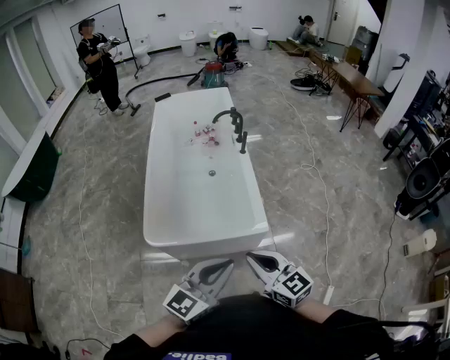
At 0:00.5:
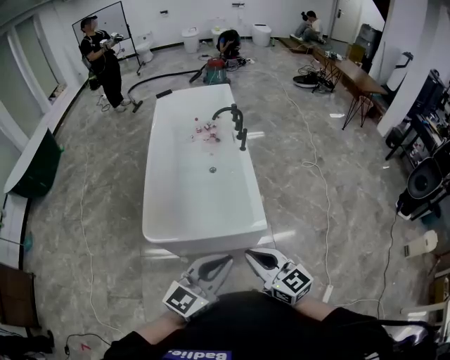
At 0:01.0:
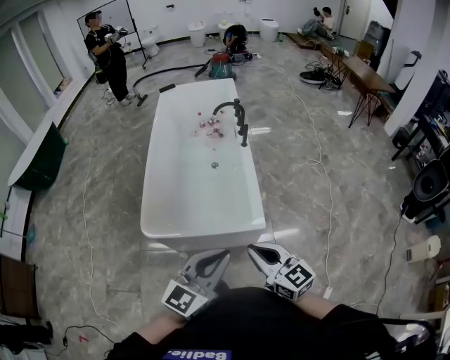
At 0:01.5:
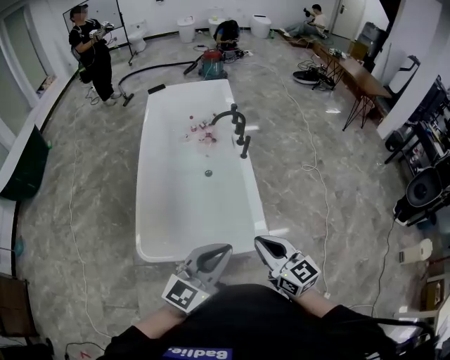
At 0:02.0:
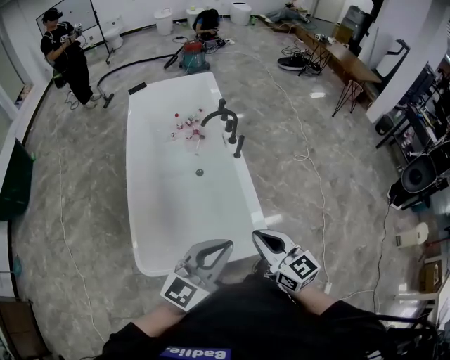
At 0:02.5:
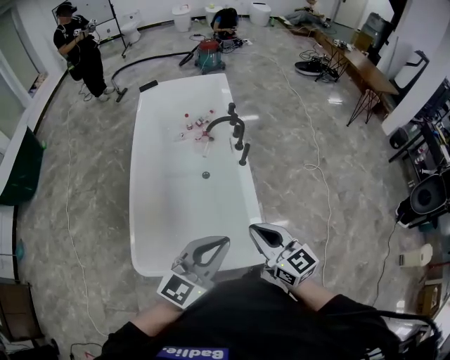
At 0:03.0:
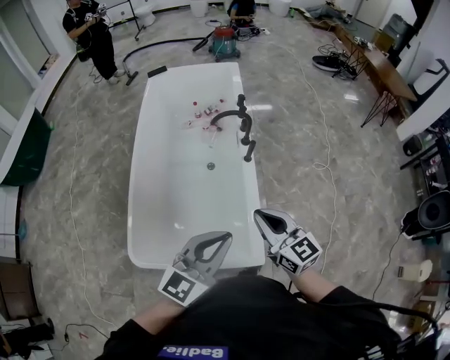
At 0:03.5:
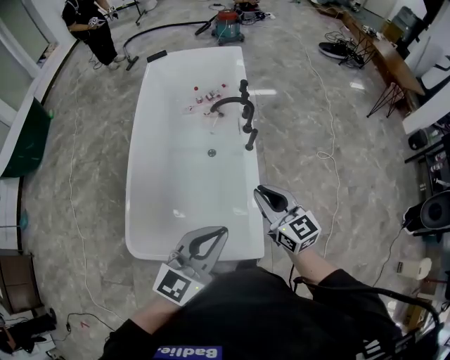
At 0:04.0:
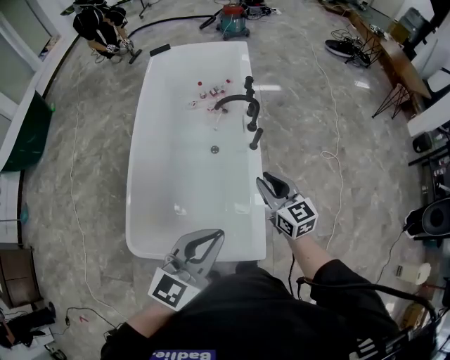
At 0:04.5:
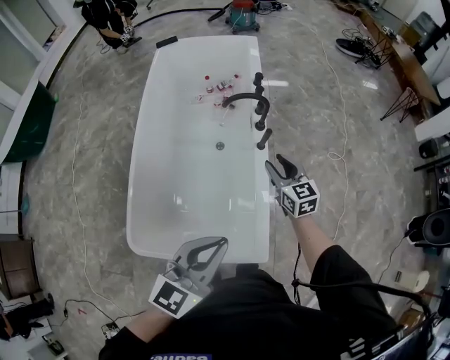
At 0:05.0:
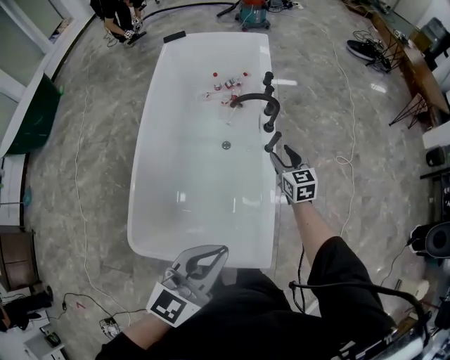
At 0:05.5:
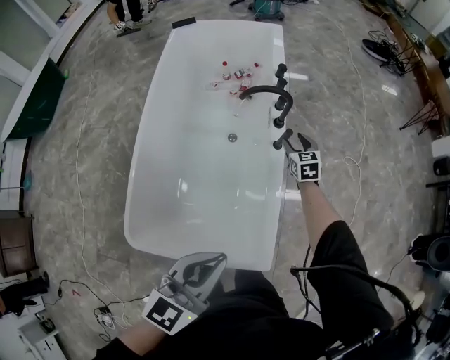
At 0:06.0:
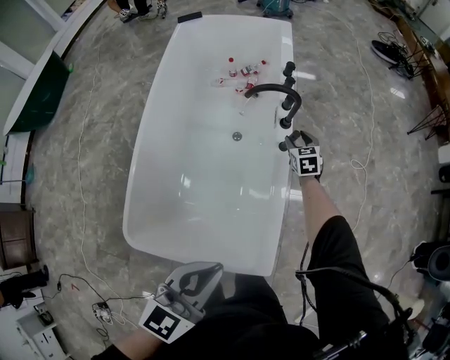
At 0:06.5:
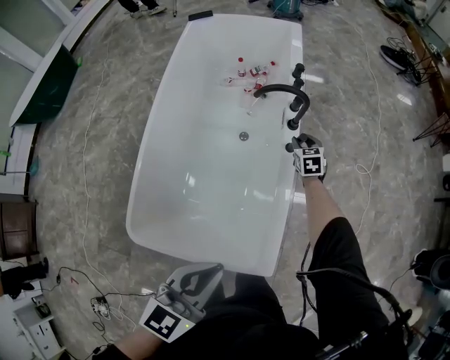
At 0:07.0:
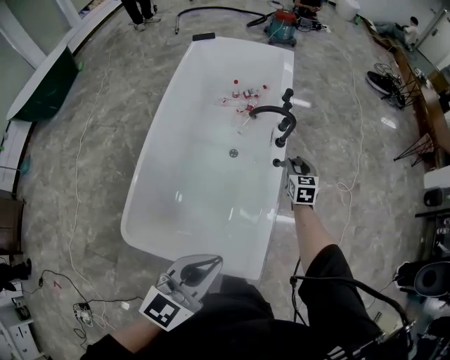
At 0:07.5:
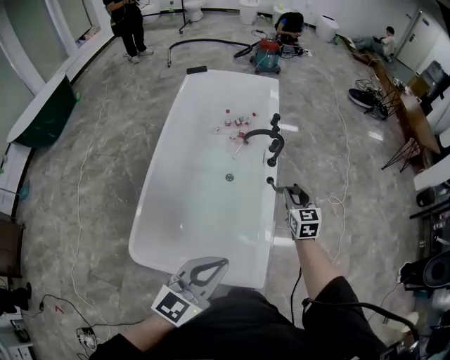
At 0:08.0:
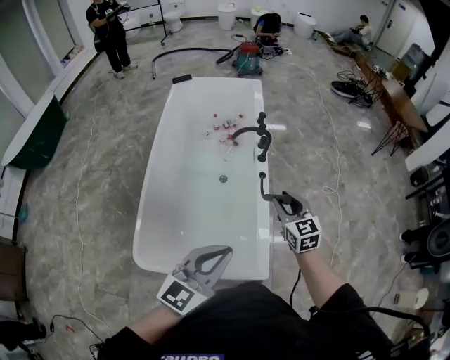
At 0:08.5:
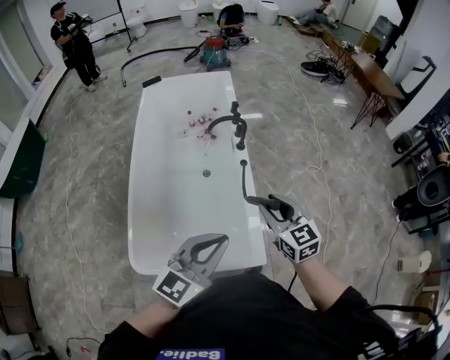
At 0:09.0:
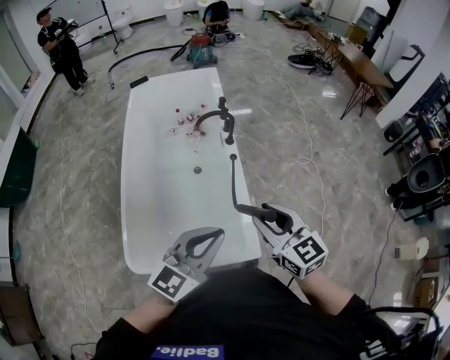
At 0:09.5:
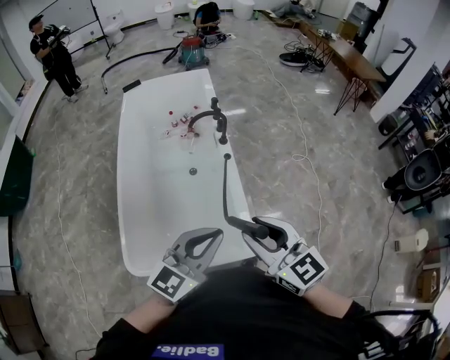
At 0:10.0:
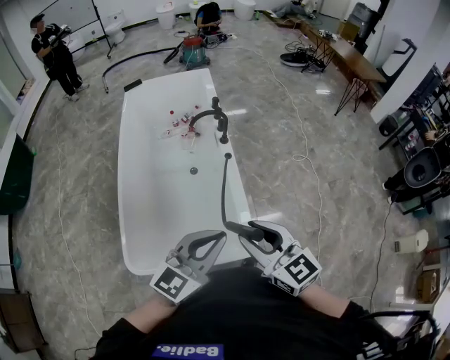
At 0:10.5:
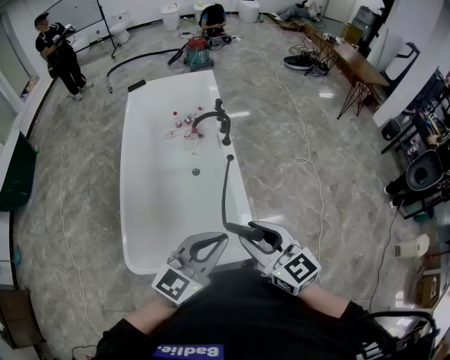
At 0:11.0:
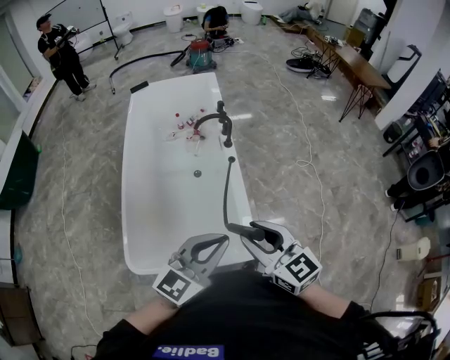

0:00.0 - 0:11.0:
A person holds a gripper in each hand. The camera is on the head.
0:00.0 - 0:02.0: The two grippers go approximately 30 cm forward.
0:02.0 - 0:03.5: The left gripper heads forward and to the right, covering roughly 15 cm. Meanwhile the right gripper is displaced forward by some 20 cm.
0:03.5 - 0:05.5: The left gripper shifts about 10 cm downward. The right gripper shifts roughly 40 cm forward and downward, rotates some 30 degrees, and opens its fingers.
0:05.5 - 0:07.5: The left gripper moves backward and upward, roughly 10 cm. Meanwhile the right gripper moves upward and backward, approximately 25 cm.
0:07.5 - 0:09.0: The left gripper changes place by some 5 cm; the right gripper travels backward and upward by roughly 30 cm.
0:09.0 - 0:11.0: The right gripper travels backward by approximately 5 cm.

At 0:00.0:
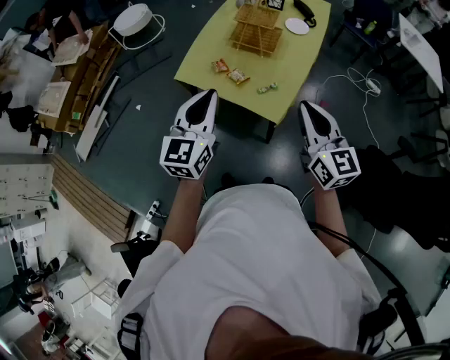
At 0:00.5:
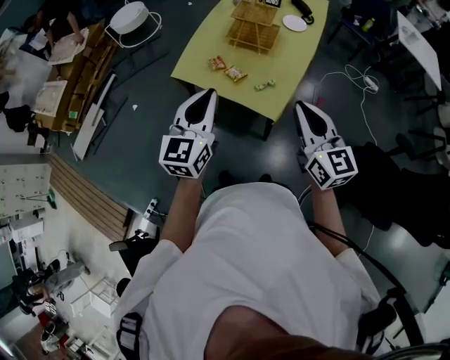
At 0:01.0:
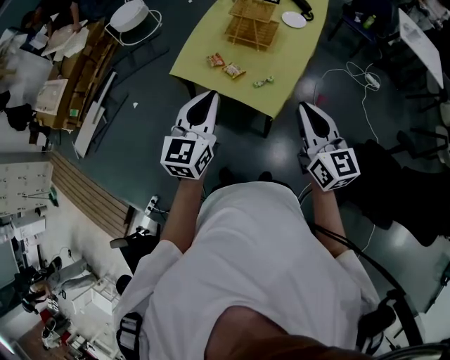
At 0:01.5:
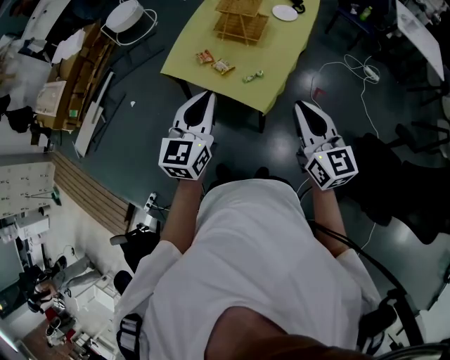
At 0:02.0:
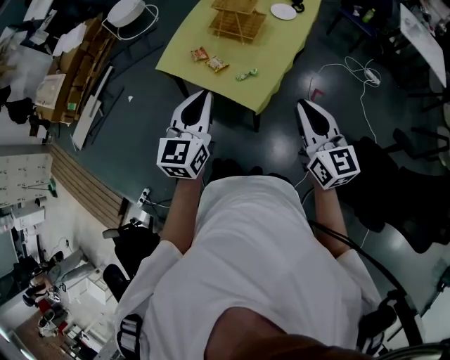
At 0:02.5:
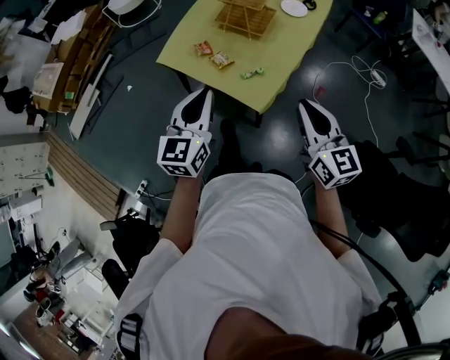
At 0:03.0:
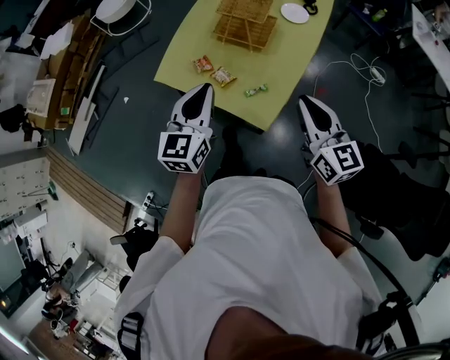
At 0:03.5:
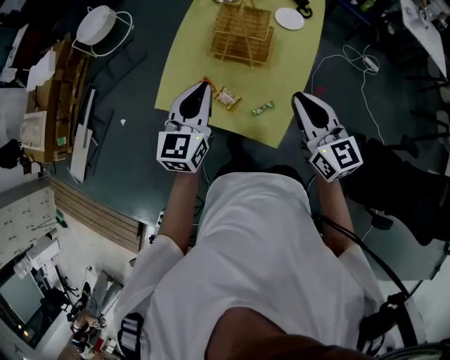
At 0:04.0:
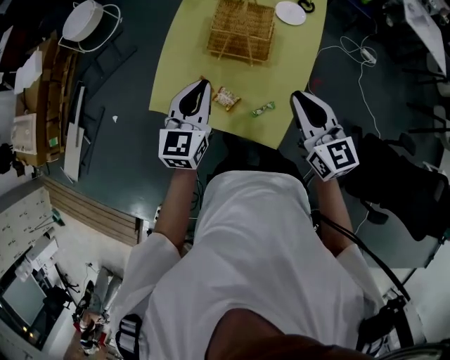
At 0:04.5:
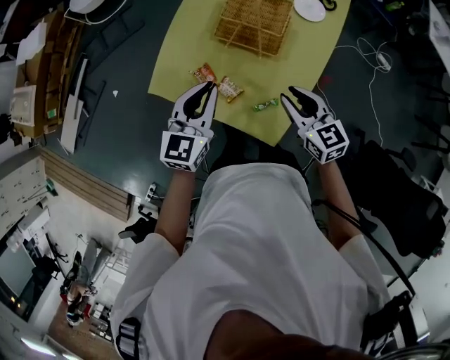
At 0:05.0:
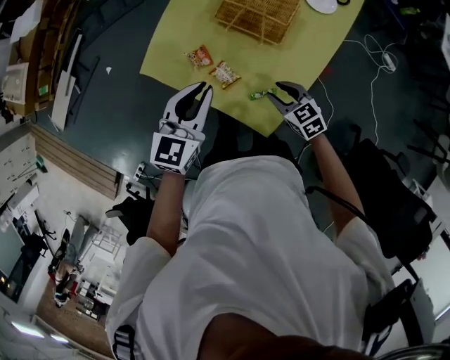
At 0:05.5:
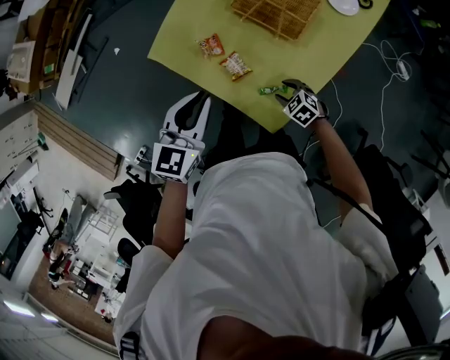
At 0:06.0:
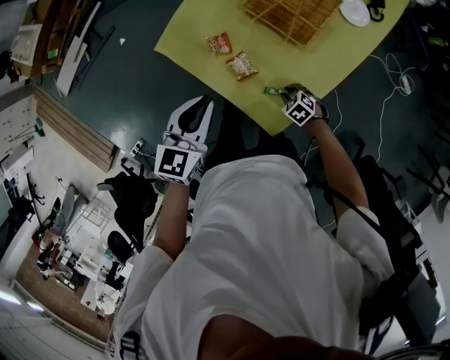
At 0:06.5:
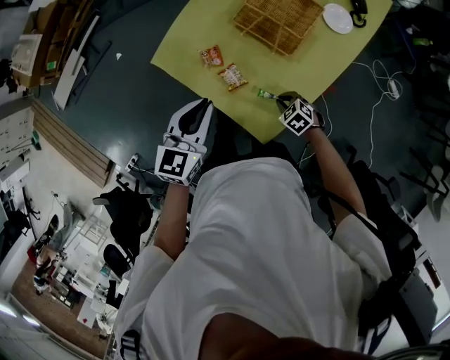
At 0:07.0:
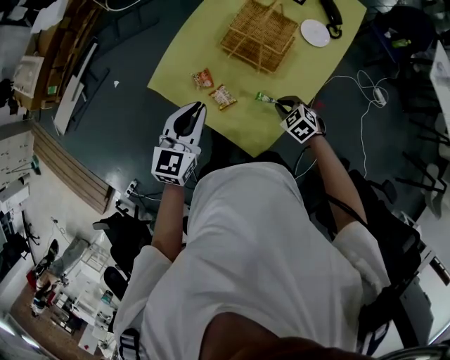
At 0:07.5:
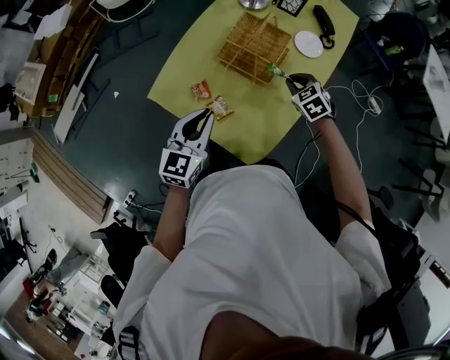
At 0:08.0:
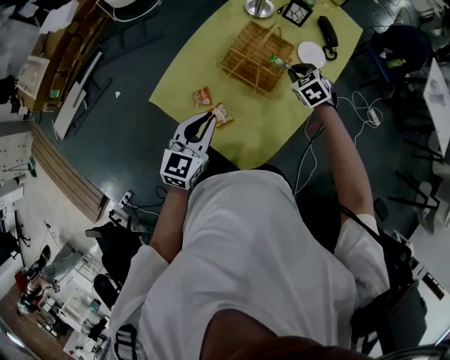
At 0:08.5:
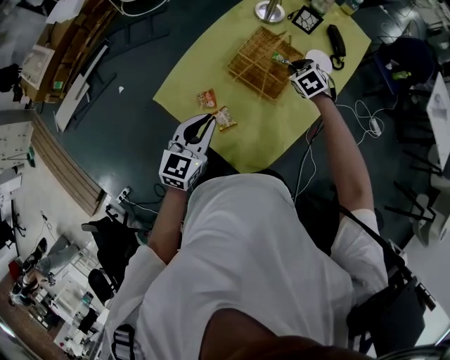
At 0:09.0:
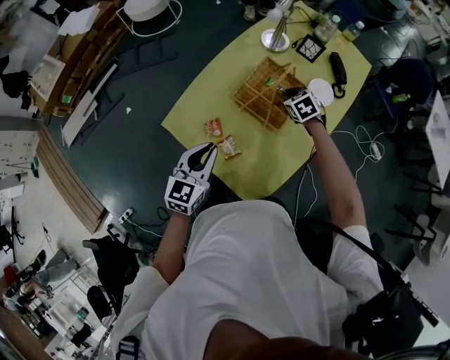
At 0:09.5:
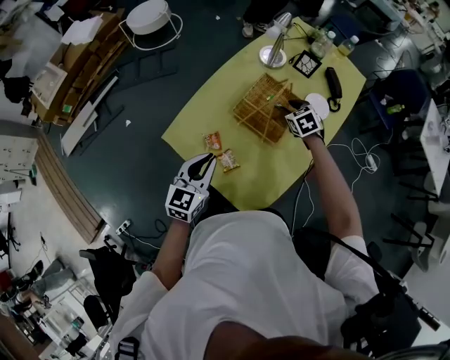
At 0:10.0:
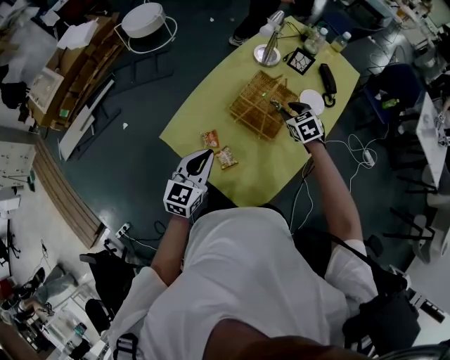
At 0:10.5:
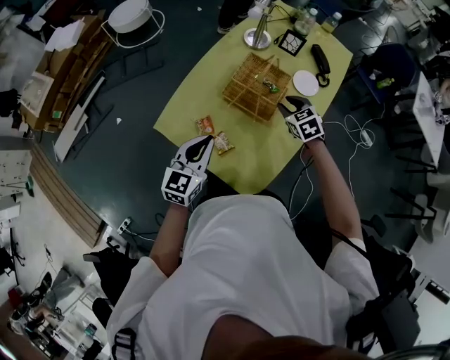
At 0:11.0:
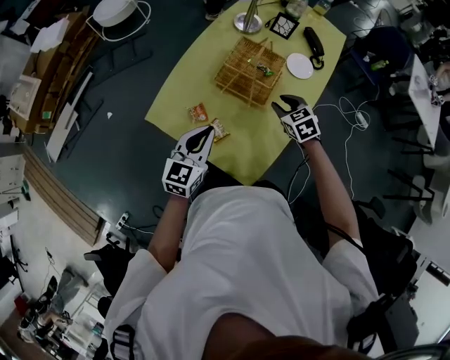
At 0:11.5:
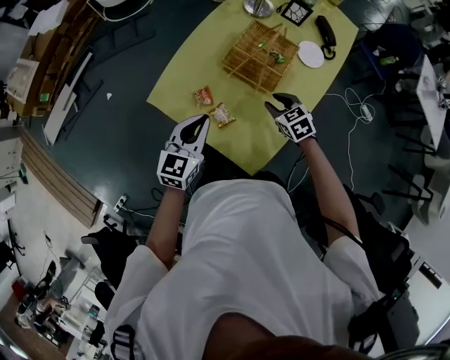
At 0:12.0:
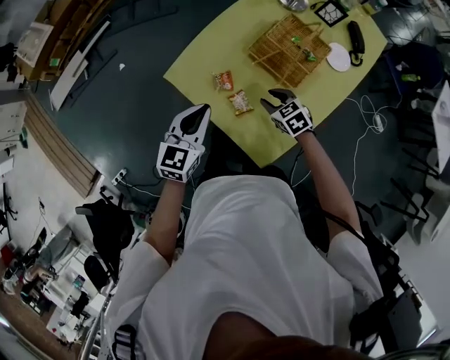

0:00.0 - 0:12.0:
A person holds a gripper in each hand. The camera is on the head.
0:00.0 - 0:02.0: The two grippers go about 10 cm to the right.
0:02.0 - 0:04.0: The grippers both shift forward by some 35 cm.
0:04.0 - 0:06.0: The right gripper heads downward, covering approximately 40 cm, angles its fingers downward, by some 60 degrees, and opens, then closes once more. Meanwhile the left gripper ends up approximately 15 cm from where it was.
0:06.0 - 0:08.0: The right gripper shifts roughly 25 cm upward, and turns by approximately 30 degrees, while the left gripper moves some 10 cm.
0:08.0 - 0:10.0: The right gripper opens up.
0:10.0 - 0:12.0: The right gripper shifts approximately 25 cm backward, to the left and downward; the left gripper travels to the left by roughly 5 cm.

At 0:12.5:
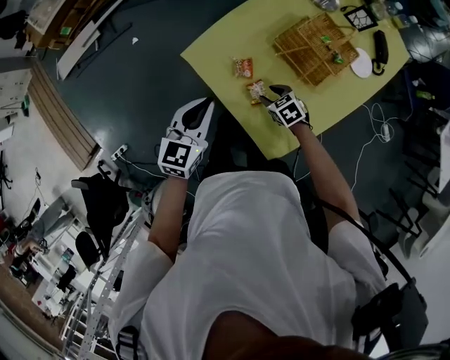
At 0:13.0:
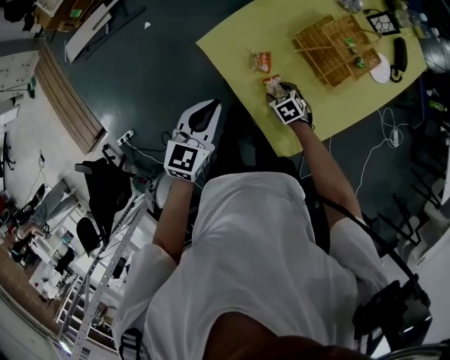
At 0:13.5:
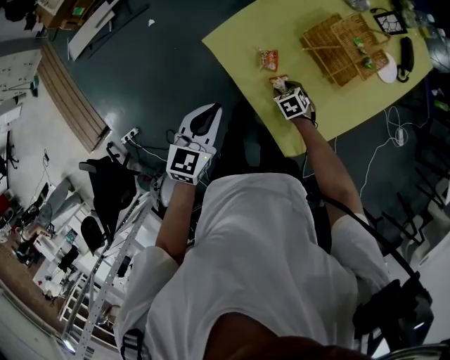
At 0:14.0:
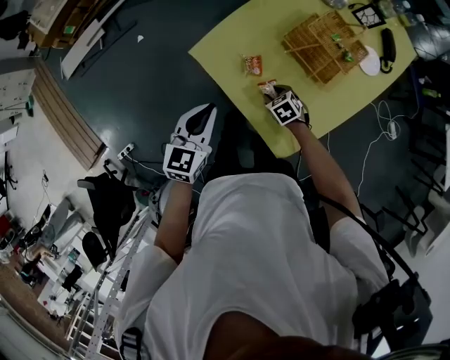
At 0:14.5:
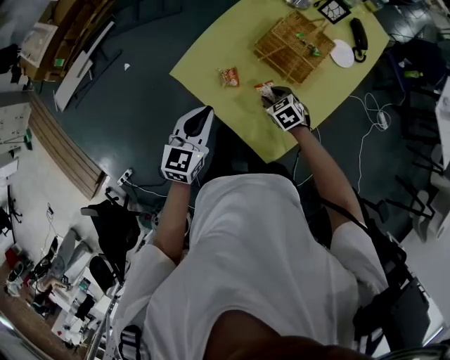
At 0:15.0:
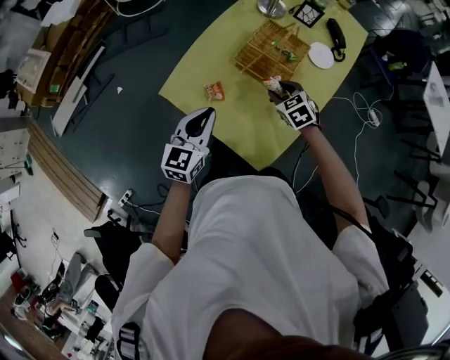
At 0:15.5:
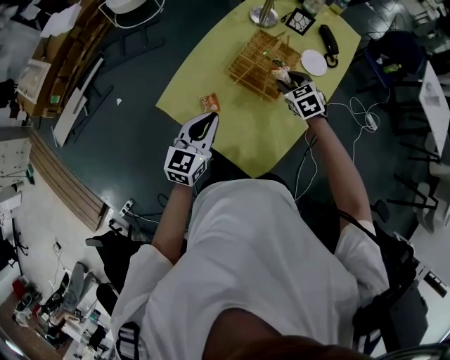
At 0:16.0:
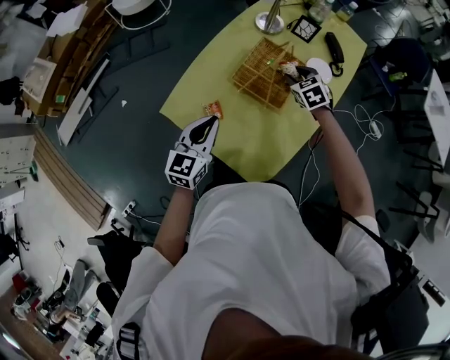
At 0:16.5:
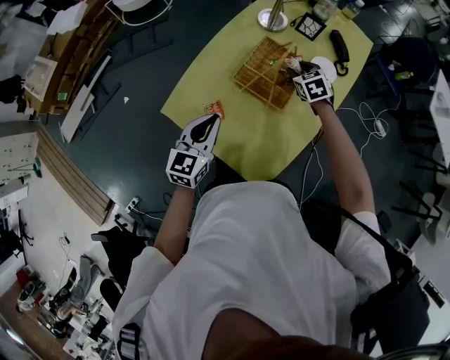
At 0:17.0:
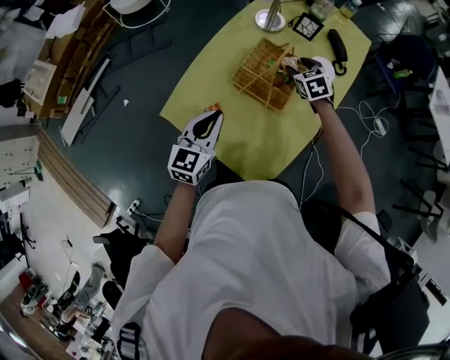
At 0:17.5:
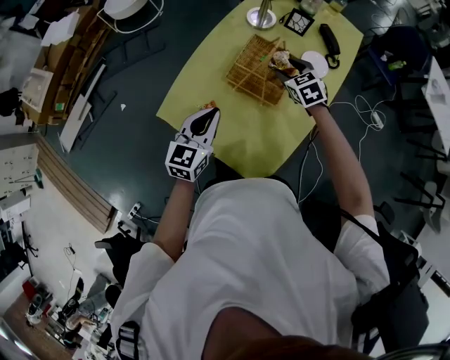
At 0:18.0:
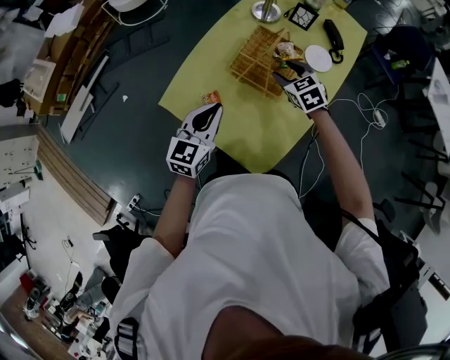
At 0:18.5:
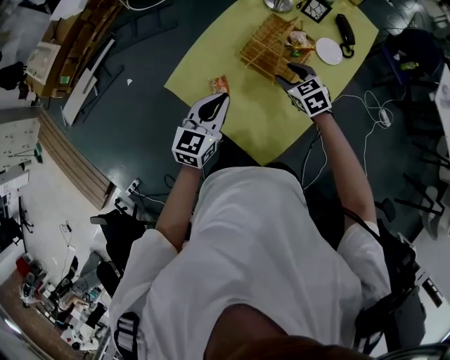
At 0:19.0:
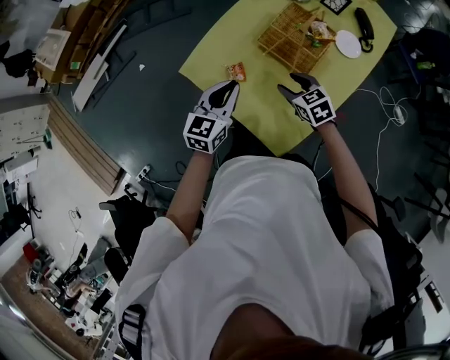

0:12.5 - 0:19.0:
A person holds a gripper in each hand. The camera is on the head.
0:12.5 - 0:14.5: The right gripper changes place by some 5 cm.
0:14.5 - 0:17.0: The right gripper goes some 30 cm forward, to the right and upward, and rotates some 20 degrees, while the left gripper is displaced forward and to the right by roughly 15 cm.
0:17.0 - 0:19.0: The right gripper heads backward and to the left, covering about 25 cm. The left gripper is displaced backward by approximately 5 cm.
